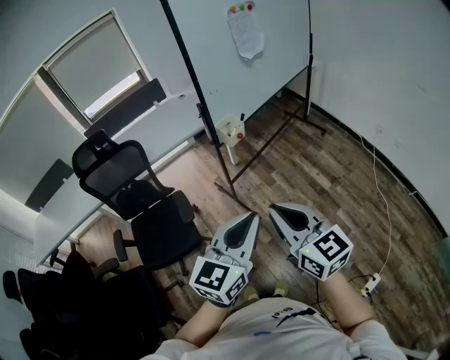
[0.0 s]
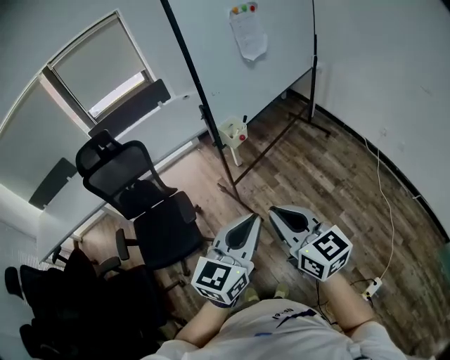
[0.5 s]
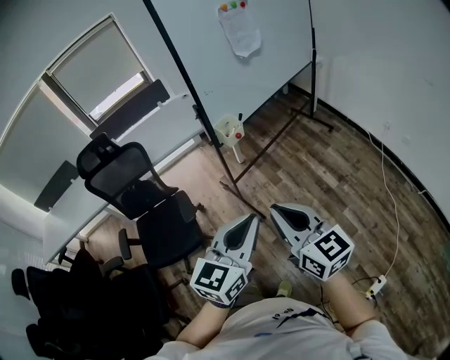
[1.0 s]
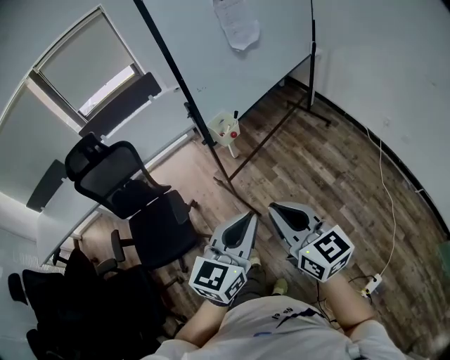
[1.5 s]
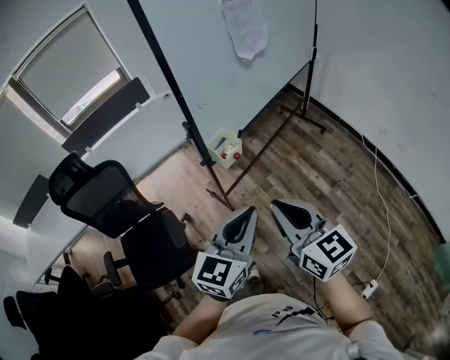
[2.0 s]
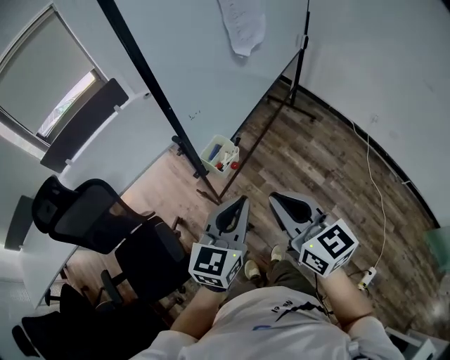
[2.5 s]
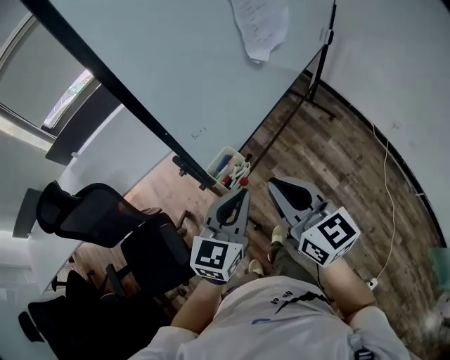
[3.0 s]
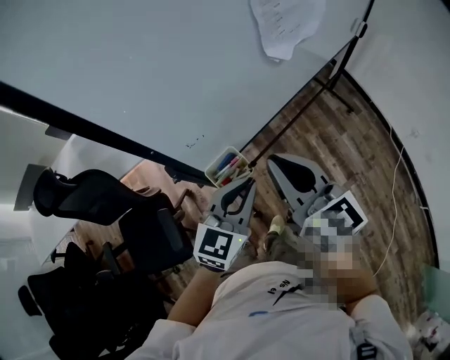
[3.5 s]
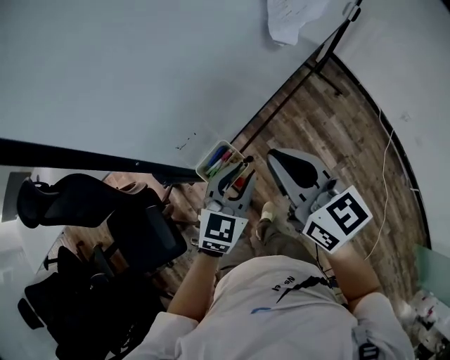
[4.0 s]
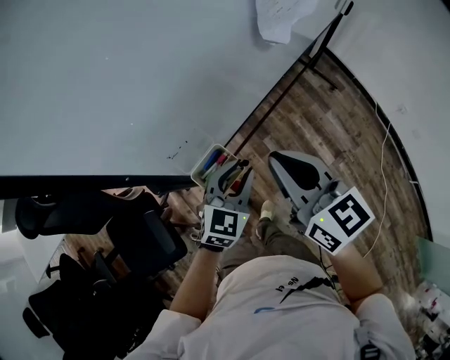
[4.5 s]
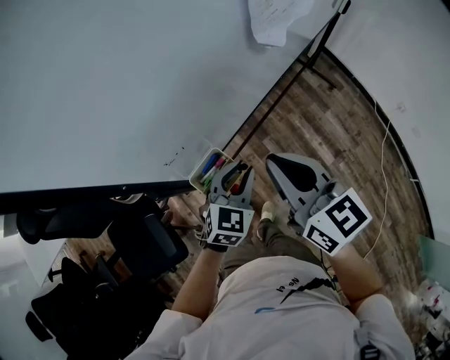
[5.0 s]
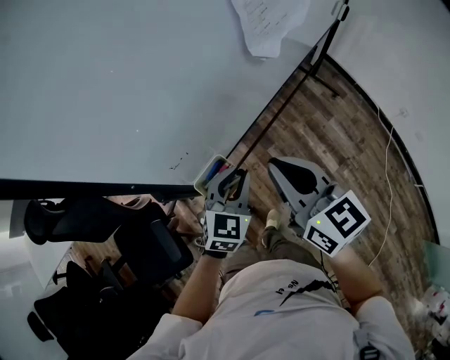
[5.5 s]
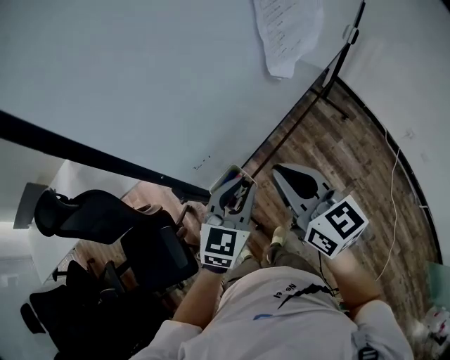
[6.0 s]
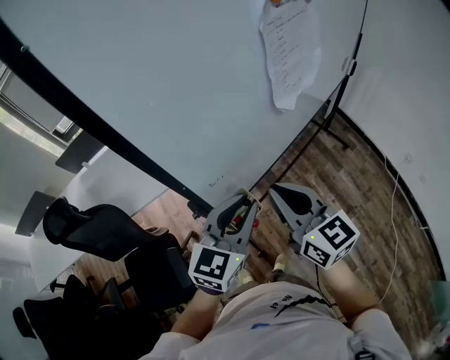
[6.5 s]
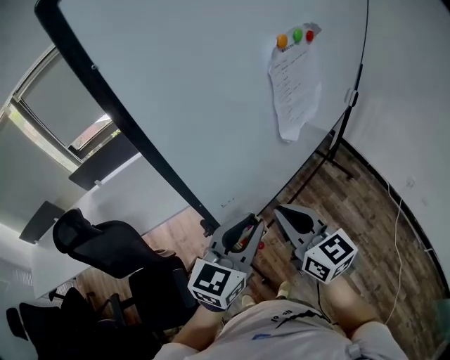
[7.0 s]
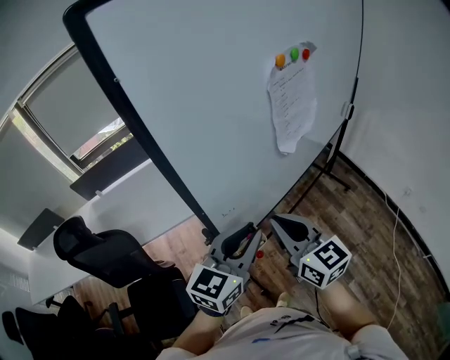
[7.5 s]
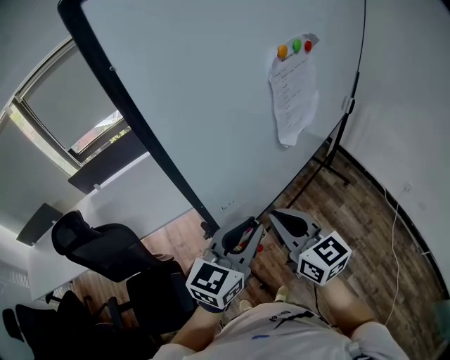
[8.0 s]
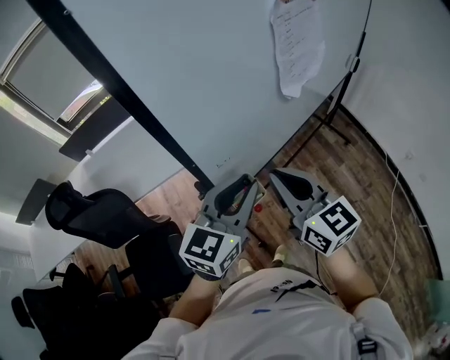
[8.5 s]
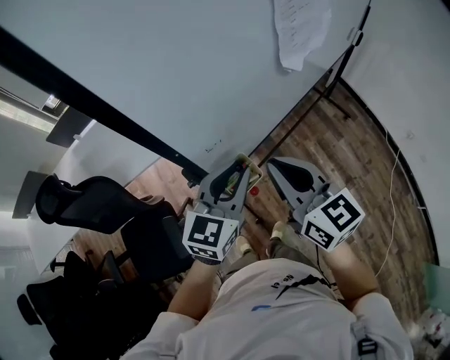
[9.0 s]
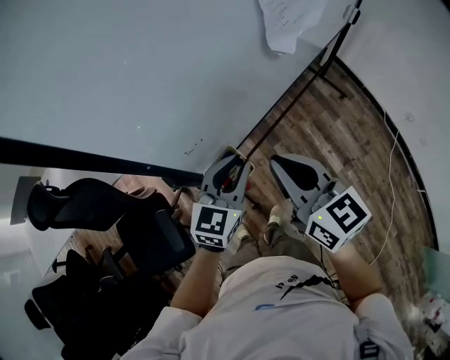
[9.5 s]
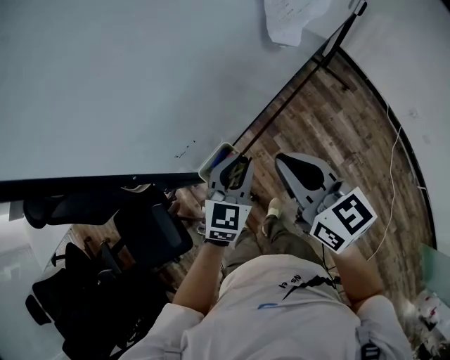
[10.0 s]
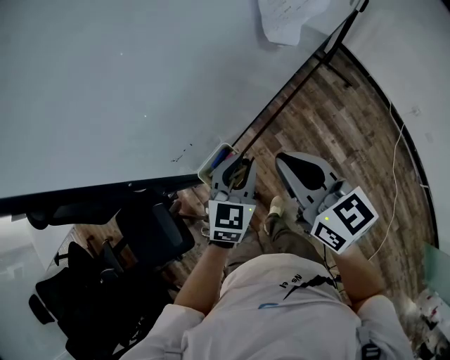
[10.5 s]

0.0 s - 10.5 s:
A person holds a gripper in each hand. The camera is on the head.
0.0 s - 2.0 s: Both grippers move forward, approximately 20 cm.
2.0 s - 4.0 s: The left gripper travels forward and downward by about 40 cm, and opens. The right gripper shifts some 35 cm forward.
4.0 s - 6.5 s: The left gripper travels upward by some 15 cm. The right gripper shifts about 5 cm upward.
8.5 s - 10.5 s: The right gripper goes roughly 10 cm downward and to the right, while the left gripper goes some 20 cm downward.

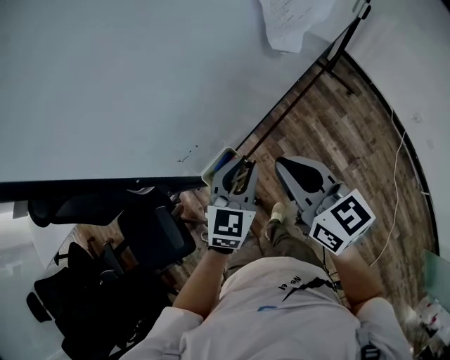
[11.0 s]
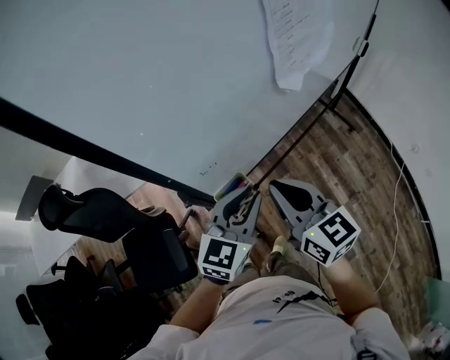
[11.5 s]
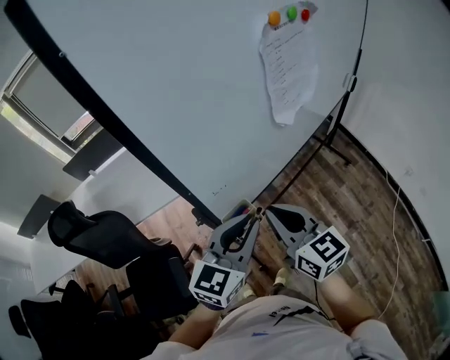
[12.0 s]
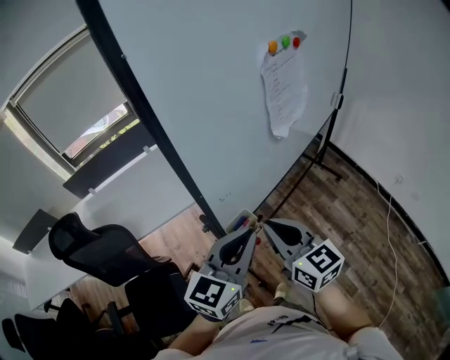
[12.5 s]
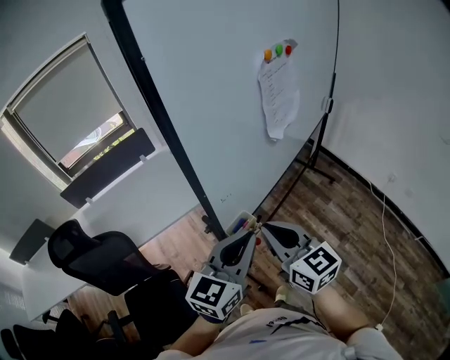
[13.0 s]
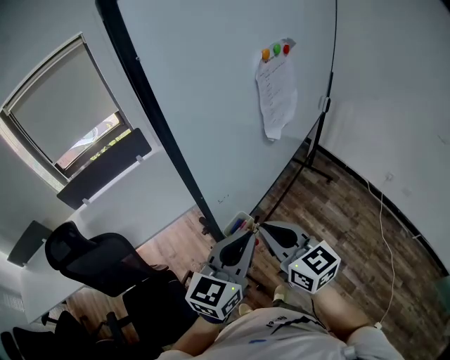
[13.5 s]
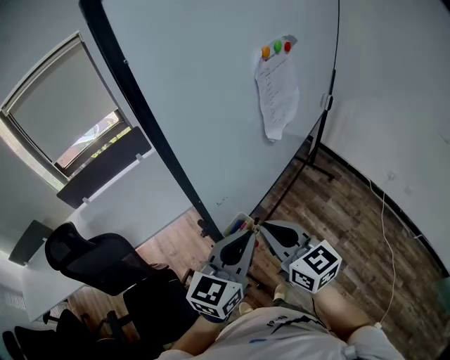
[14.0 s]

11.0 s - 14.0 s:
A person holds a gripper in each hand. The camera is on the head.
11.0 s - 12.5 s: The left gripper goes roughly 25 cm upward and backward, and turns by roughly 20 degrees. Meanwhile the right gripper moves upward, backward and to the left, about 15 cm.
12.5 s - 14.0 s: The grippers move only a little.

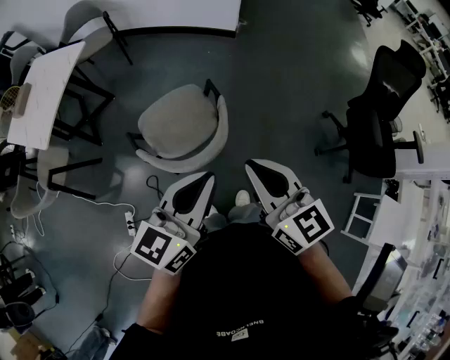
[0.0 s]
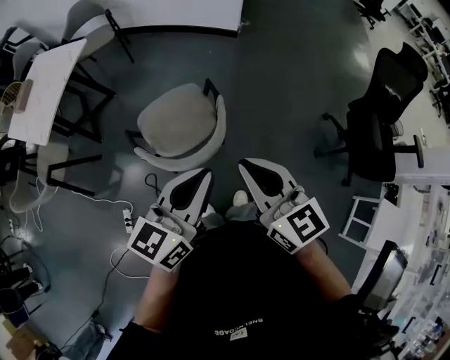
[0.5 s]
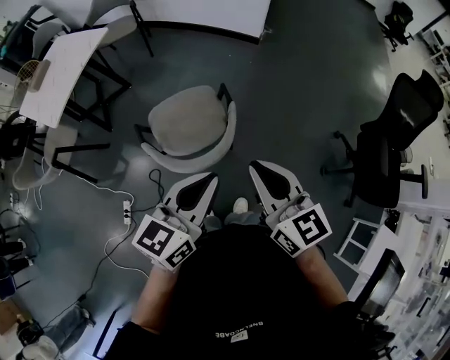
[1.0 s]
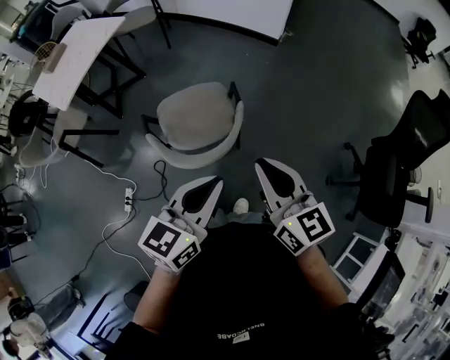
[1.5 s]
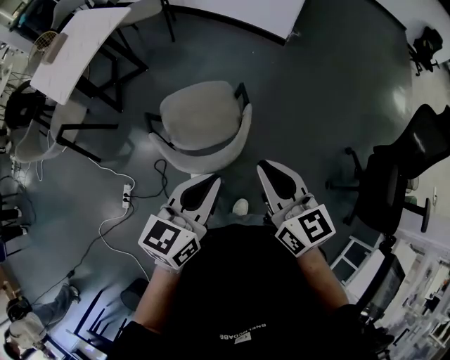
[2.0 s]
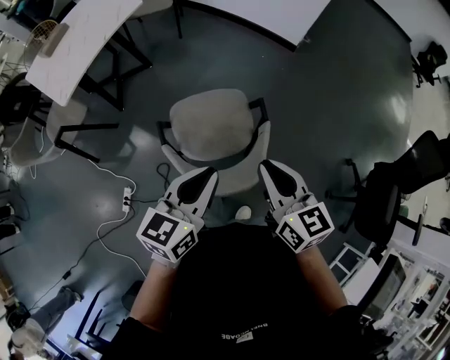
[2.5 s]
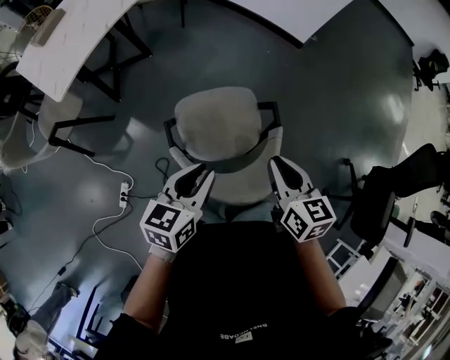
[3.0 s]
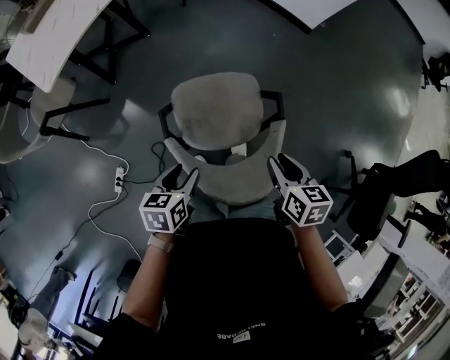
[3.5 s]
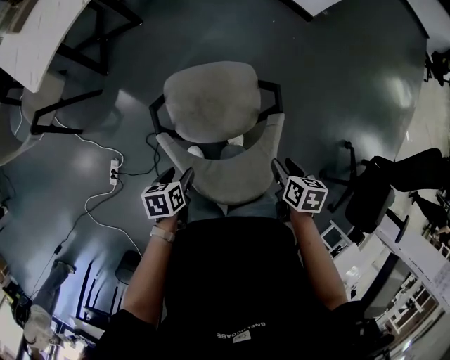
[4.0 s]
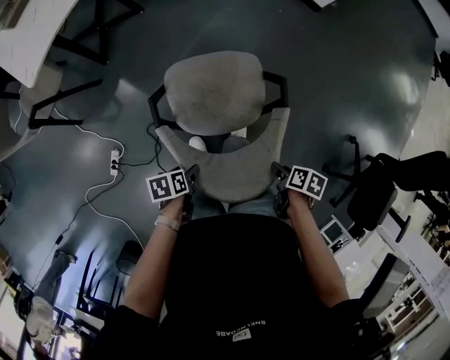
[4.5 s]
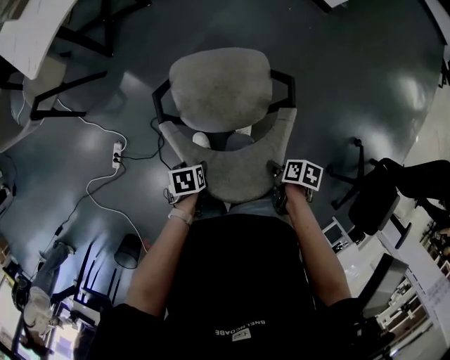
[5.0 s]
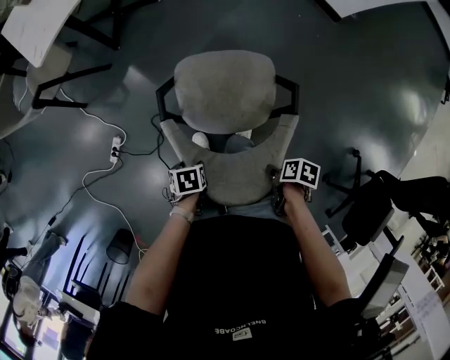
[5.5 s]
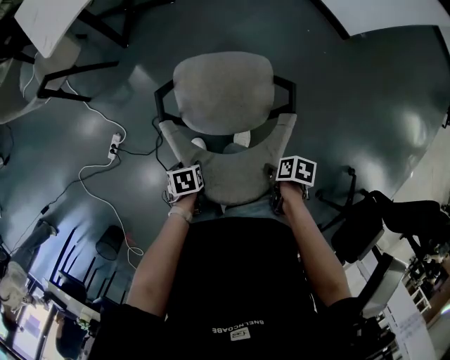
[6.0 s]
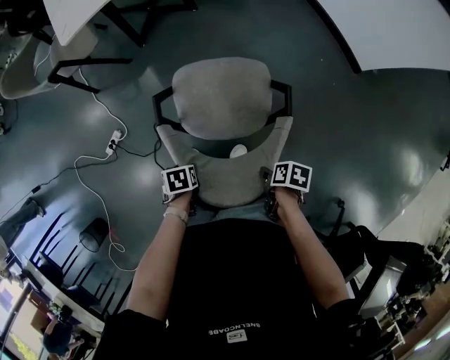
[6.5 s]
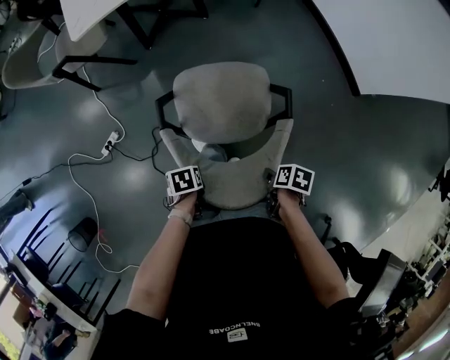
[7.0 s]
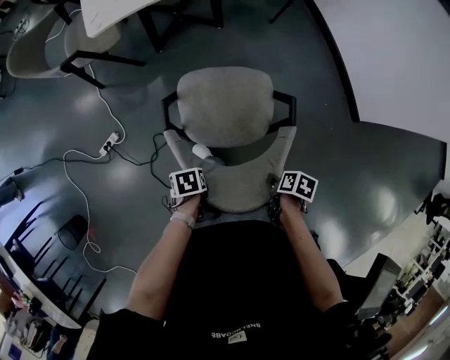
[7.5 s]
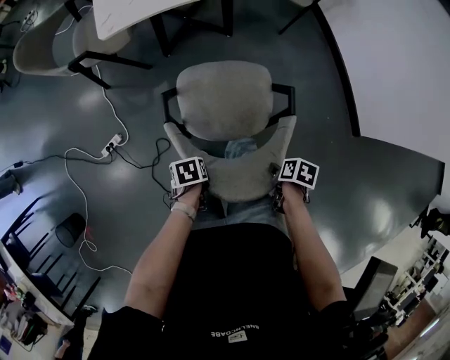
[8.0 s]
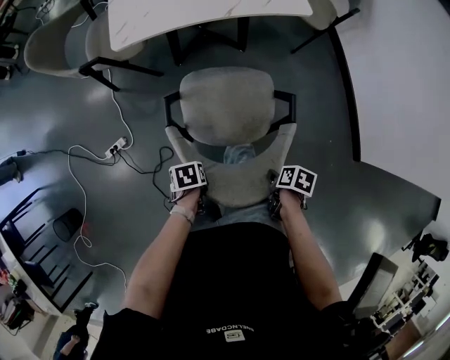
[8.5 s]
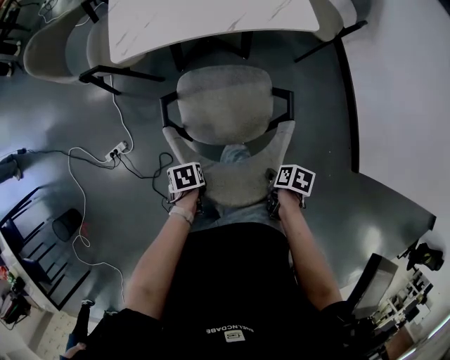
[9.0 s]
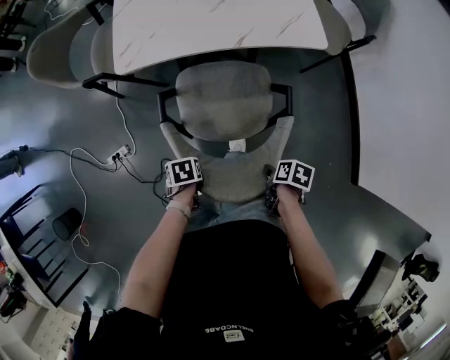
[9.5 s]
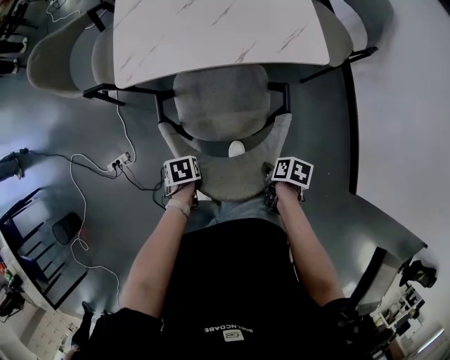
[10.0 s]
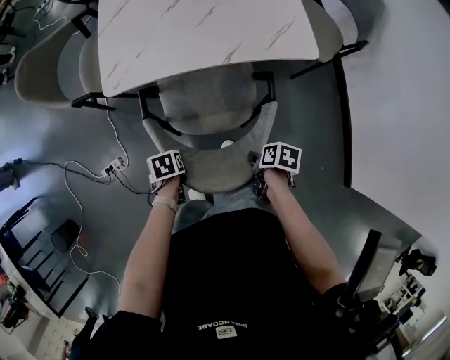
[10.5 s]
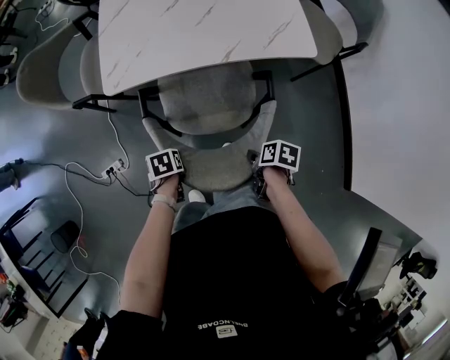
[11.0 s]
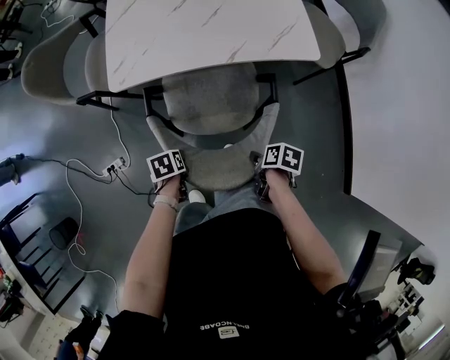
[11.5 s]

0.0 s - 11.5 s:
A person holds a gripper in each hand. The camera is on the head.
0.0 s - 2.0 s: The left gripper goes approximately 5 cm downward. The right gripper moves forward, about 5 cm.
2.0 s - 4.0 s: The left gripper shifts about 40 cm downward and to the left, angles its fingers downward, by about 40 degrees, and opens its fingers; the right gripper heads downward and forward, covering some 30 cm, tips its fingers downward by some 50 degrees, and opens up.
4.0 s - 6.0 s: The grippers both shift downward by about 10 cm. The right gripper turns by approximately 30 degrees. Meanwhile the left gripper rotates roughly 20 degrees.
6.0 s - 7.5 s: The right gripper shifts by approximately 25 cm, while the left gripper shifts by about 15 cm, and rotates about 20 degrees.
7.5 s - 9.5 s: The right gripper changes place by some 30 cm. Meanwhile the left gripper moves roughly 25 cm.
9.5 s - 11.5 s: The right gripper ends up about 10 cm from where it was, while the left gripper moves roughly 10 cm.

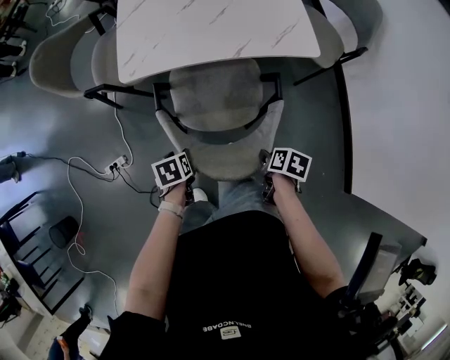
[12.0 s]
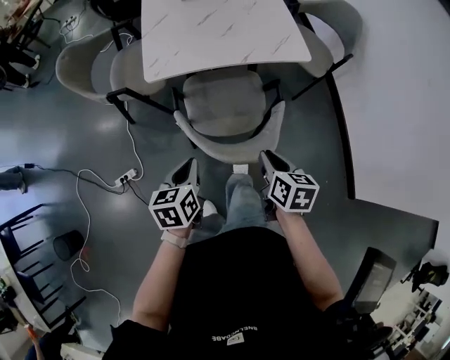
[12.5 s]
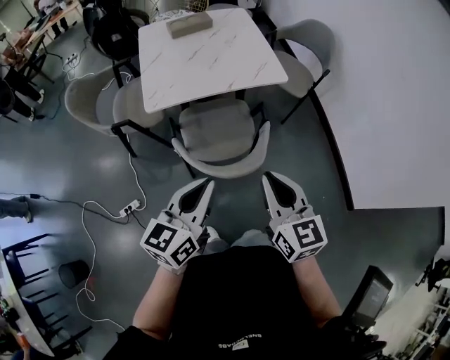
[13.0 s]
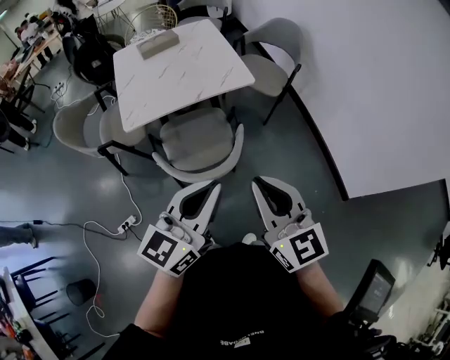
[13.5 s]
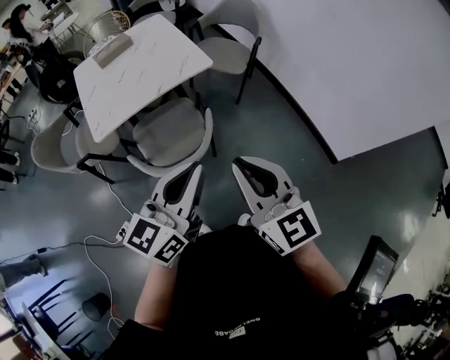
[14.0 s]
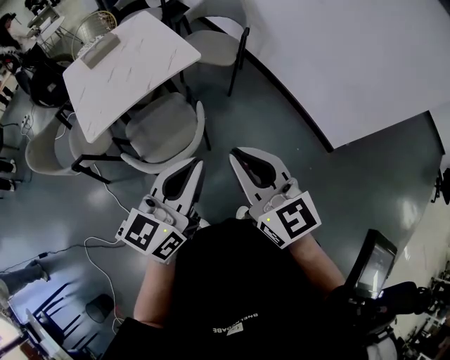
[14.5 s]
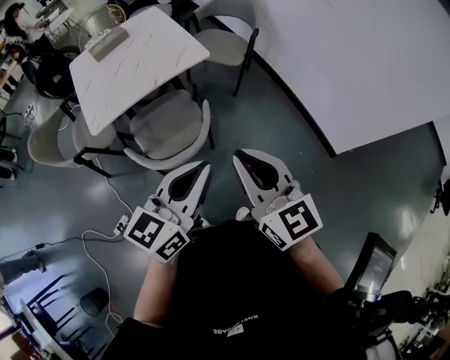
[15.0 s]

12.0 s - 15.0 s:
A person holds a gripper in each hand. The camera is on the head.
12.0 s - 13.5 s: The left gripper moves upward and to the right, some 50 cm, points its fingers some 70 degrees further upward, and closes its fingers; the right gripper heads upward, covering about 40 cm, tilts its fingers approximately 60 degrees upward, and closes up.
13.5 s - 15.0 s: The two grippers go roughly 5 cm to the right.
